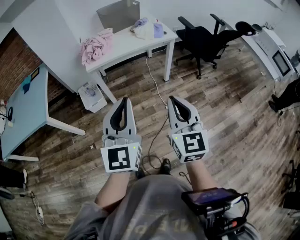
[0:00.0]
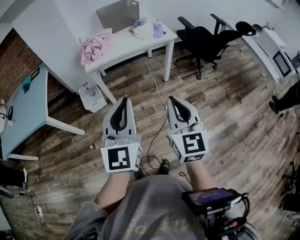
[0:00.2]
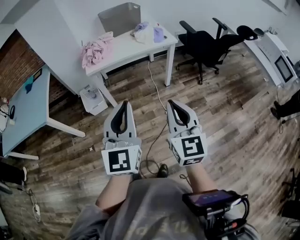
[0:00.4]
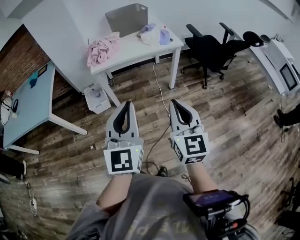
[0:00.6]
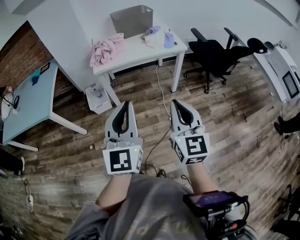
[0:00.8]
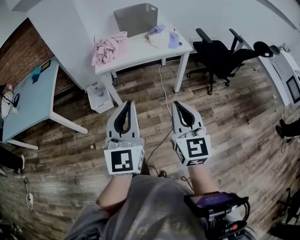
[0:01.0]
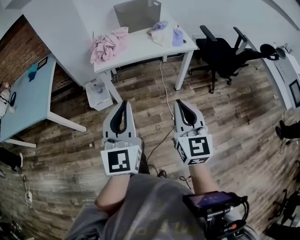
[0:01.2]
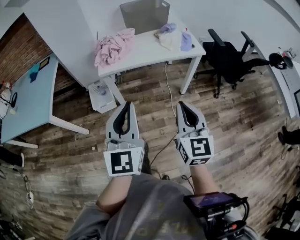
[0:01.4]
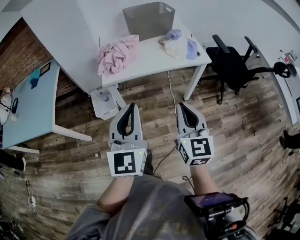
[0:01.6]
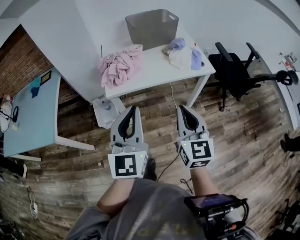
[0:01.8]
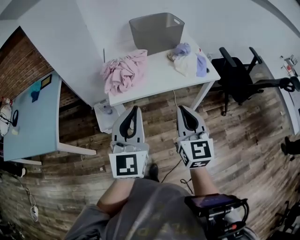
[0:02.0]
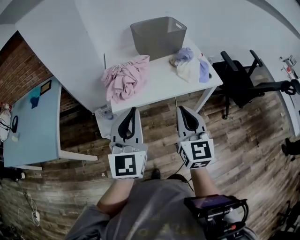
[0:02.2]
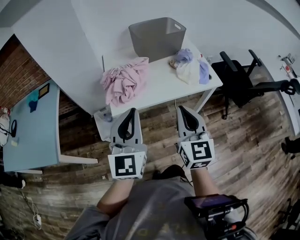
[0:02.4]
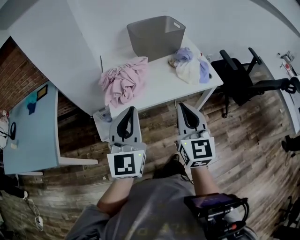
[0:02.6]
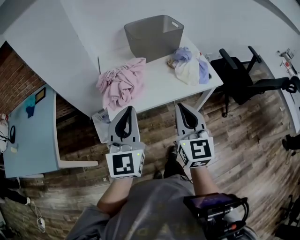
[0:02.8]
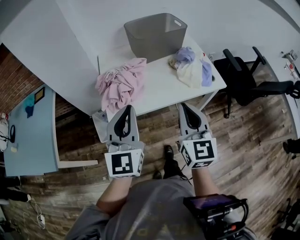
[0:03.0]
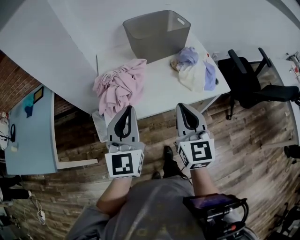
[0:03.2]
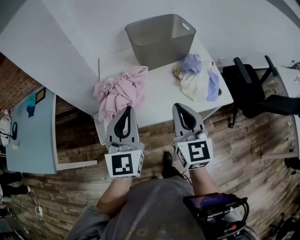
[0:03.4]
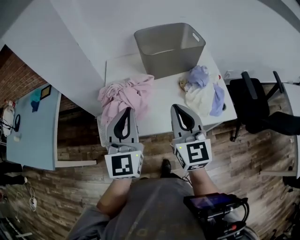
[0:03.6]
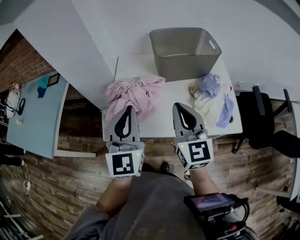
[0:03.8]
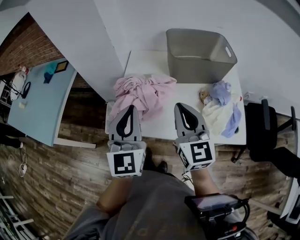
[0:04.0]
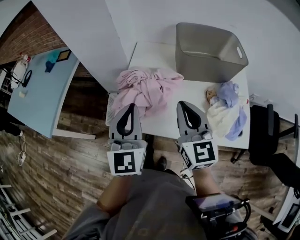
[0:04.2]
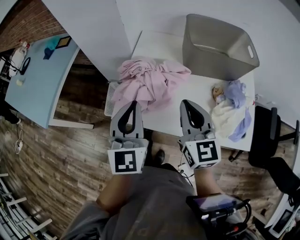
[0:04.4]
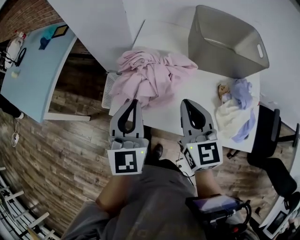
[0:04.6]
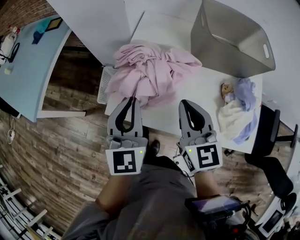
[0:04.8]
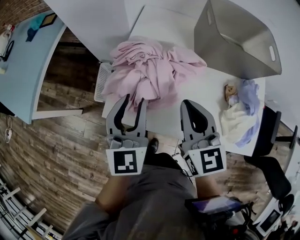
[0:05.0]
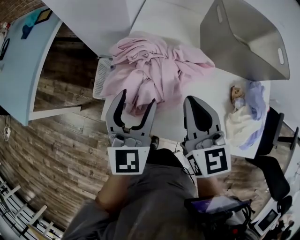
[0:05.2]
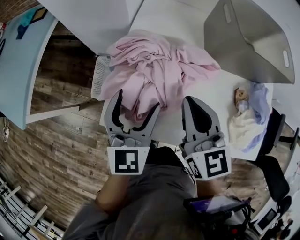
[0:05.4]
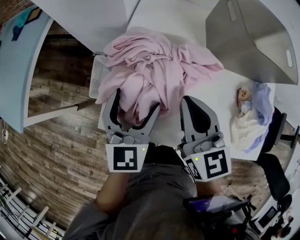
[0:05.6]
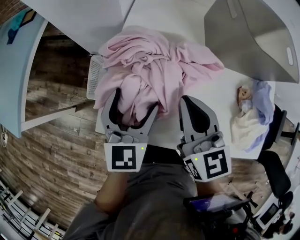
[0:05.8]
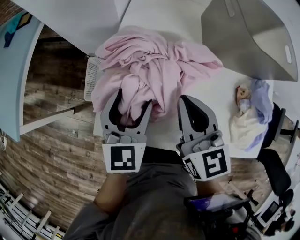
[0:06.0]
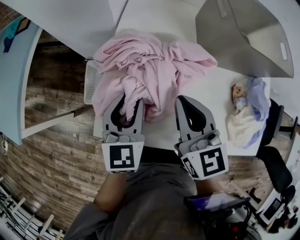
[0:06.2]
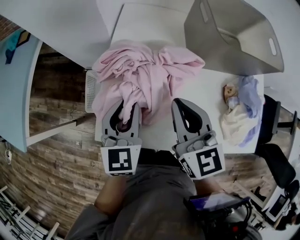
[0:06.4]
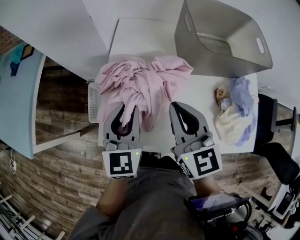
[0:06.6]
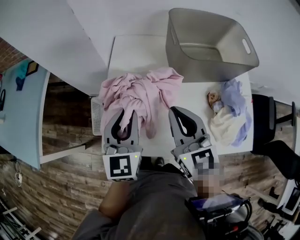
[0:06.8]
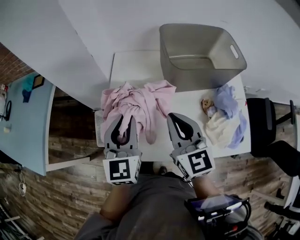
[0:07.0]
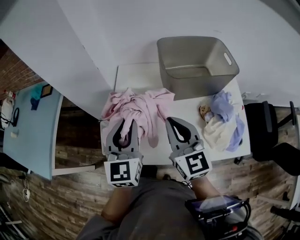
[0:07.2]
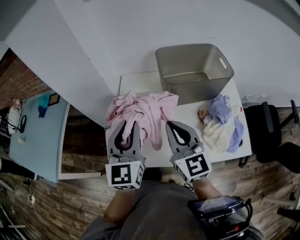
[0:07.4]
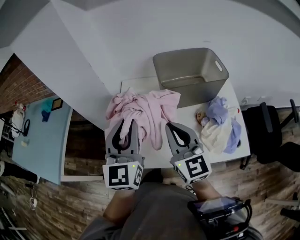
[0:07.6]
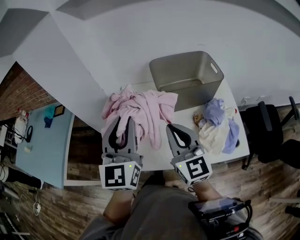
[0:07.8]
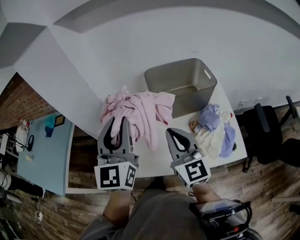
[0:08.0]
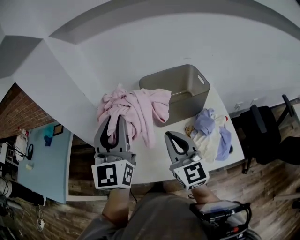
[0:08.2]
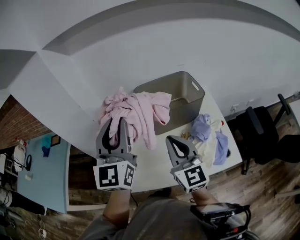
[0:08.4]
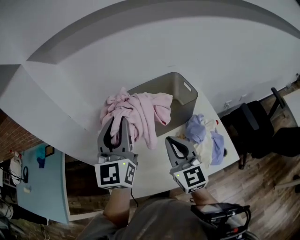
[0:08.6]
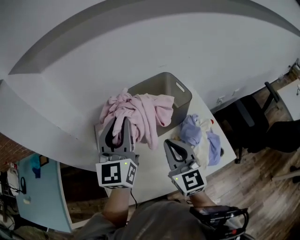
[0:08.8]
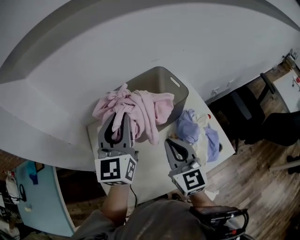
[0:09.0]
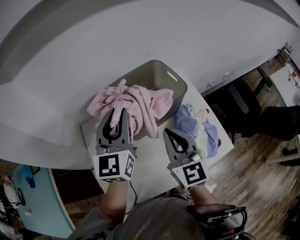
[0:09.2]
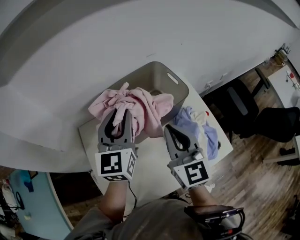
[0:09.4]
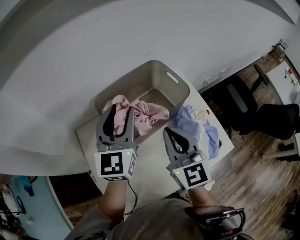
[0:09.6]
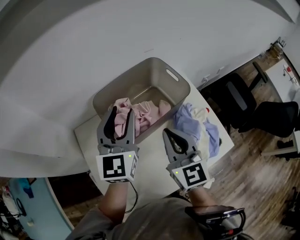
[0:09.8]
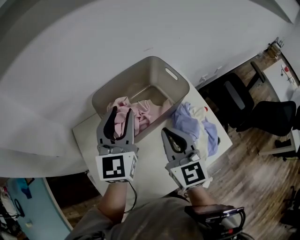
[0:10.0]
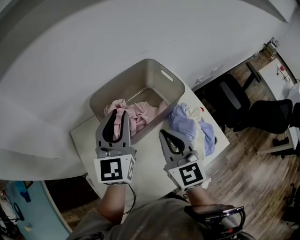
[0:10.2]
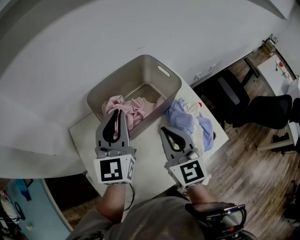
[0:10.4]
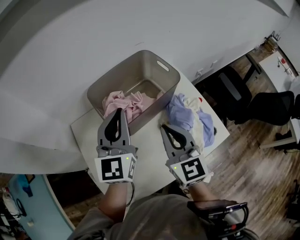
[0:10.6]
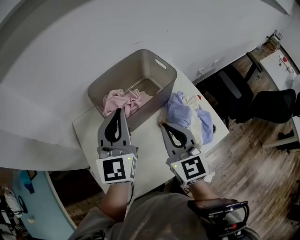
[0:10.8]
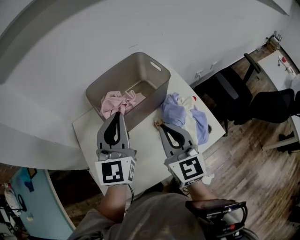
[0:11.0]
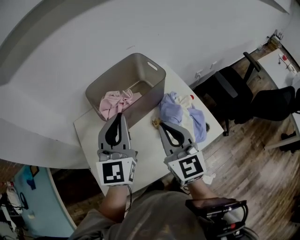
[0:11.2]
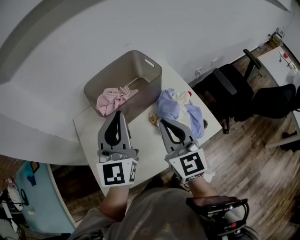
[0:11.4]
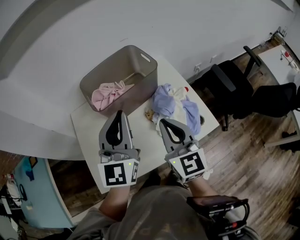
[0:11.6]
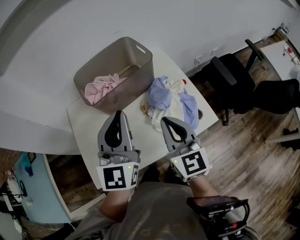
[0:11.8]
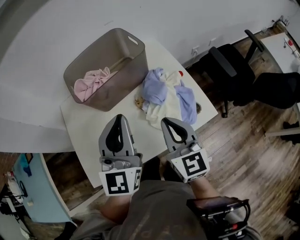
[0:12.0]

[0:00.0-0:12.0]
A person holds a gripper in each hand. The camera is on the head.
0.0 to 1.6 s: Both grippers move forward, approximately 20 cm.
1.6 to 3.0 s: The grippers both shift forward by roughly 25 cm.
3.0 to 4.4 s: The left gripper changes place by some 15 cm, and swivels about 30 degrees; the right gripper changes place by roughly 25 cm, and changes its angle by roughly 30 degrees.
4.4 to 6.0 s: The right gripper goes approximately 15 cm downward, forward and to the left. The left gripper heads downward and forward, covering approximately 20 cm, and opens.
6.0 to 7.6 s: The right gripper shifts some 20 cm upward. The left gripper heads upward, covering approximately 30 cm, swivels approximately 30 degrees, and closes.
7.6 to 9.0 s: The left gripper moves forward and to the right, roughly 25 cm, and turns by roughly 20 degrees. Meanwhile the right gripper moves to the right and forward, about 15 cm, and turns by some 20 degrees.
9.0 to 10.4 s: The left gripper shifts some 5 cm downward.
10.4 to 12.0 s: The left gripper heads backward and to the right, covering approximately 20 cm. Meanwhile the right gripper travels to the right, backward and downward by about 20 cm.

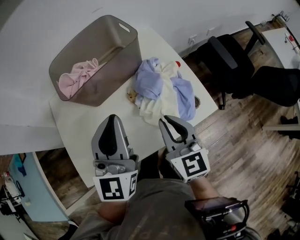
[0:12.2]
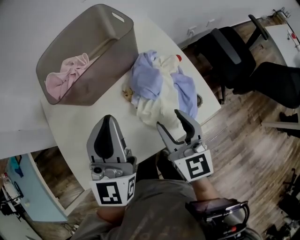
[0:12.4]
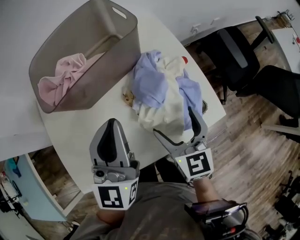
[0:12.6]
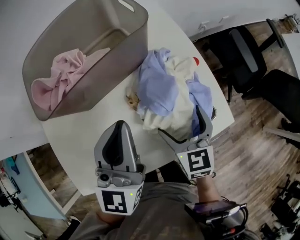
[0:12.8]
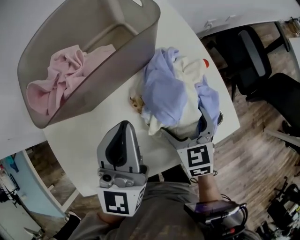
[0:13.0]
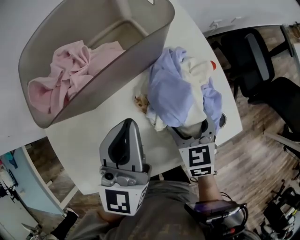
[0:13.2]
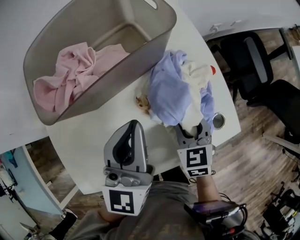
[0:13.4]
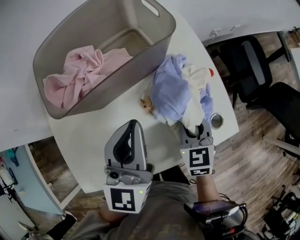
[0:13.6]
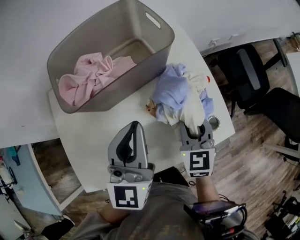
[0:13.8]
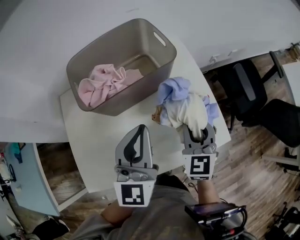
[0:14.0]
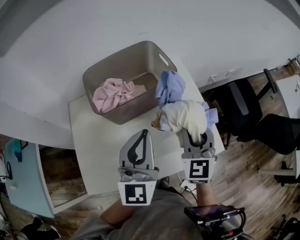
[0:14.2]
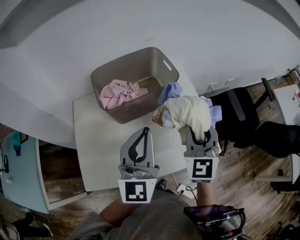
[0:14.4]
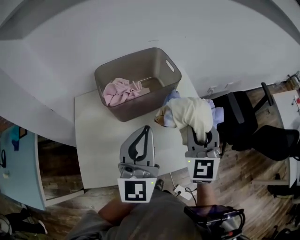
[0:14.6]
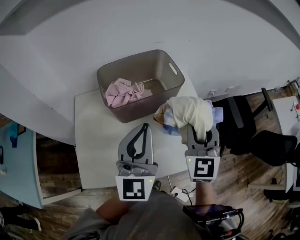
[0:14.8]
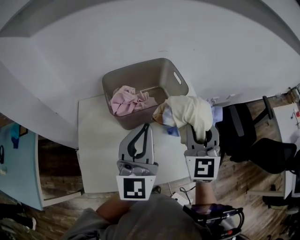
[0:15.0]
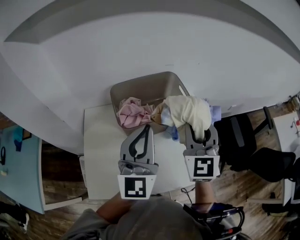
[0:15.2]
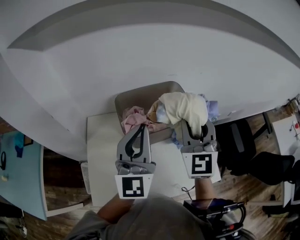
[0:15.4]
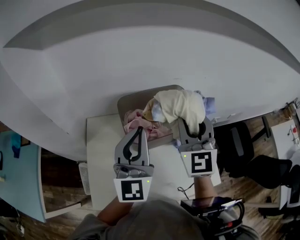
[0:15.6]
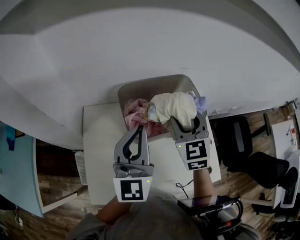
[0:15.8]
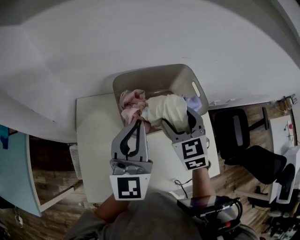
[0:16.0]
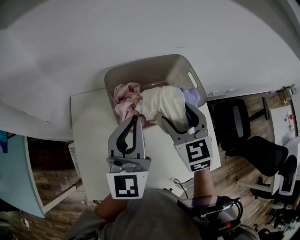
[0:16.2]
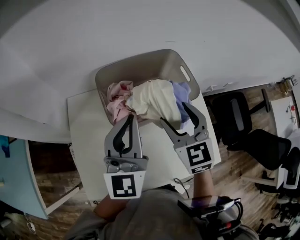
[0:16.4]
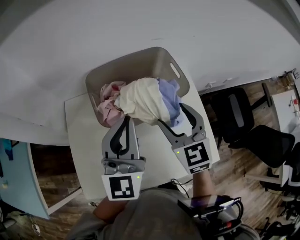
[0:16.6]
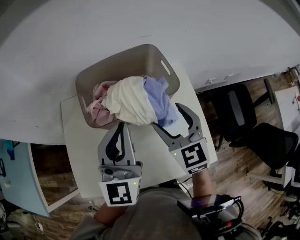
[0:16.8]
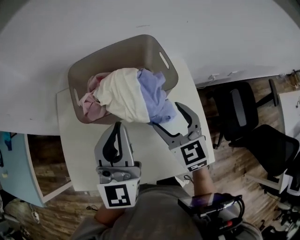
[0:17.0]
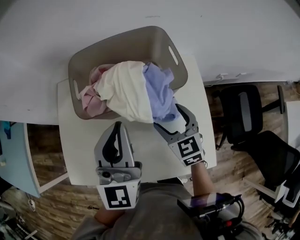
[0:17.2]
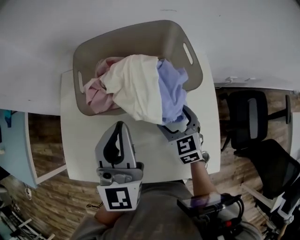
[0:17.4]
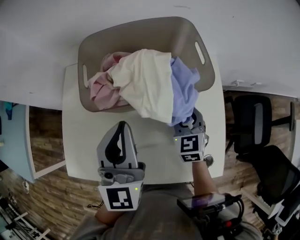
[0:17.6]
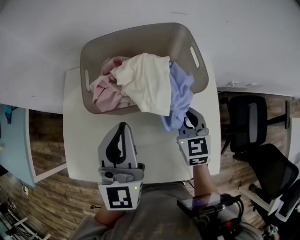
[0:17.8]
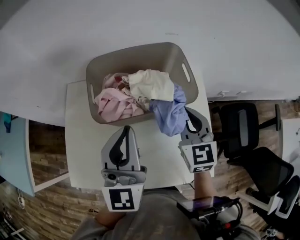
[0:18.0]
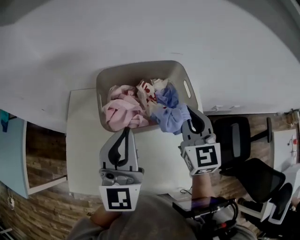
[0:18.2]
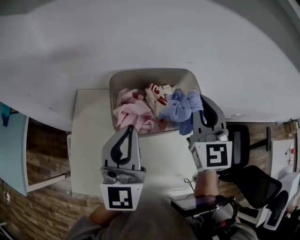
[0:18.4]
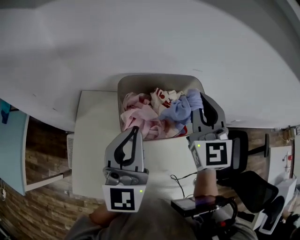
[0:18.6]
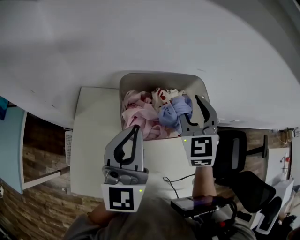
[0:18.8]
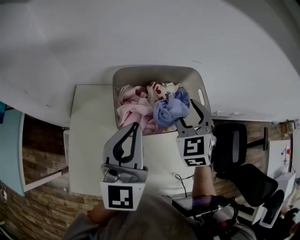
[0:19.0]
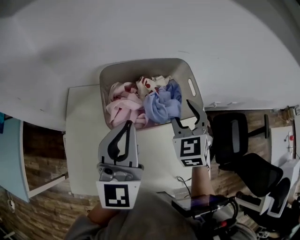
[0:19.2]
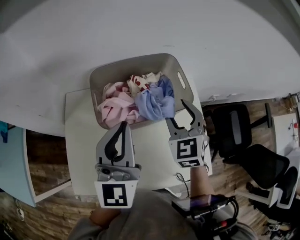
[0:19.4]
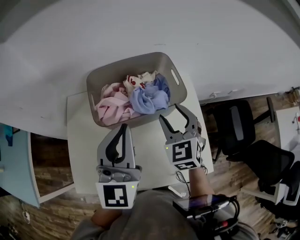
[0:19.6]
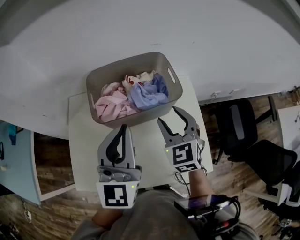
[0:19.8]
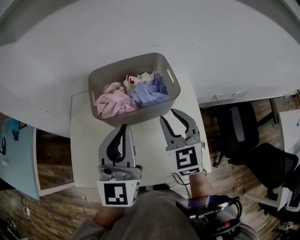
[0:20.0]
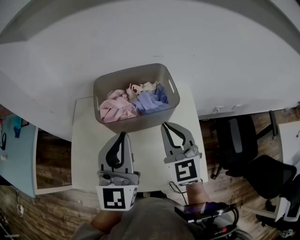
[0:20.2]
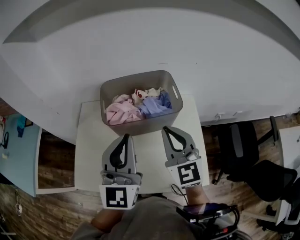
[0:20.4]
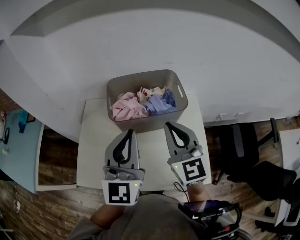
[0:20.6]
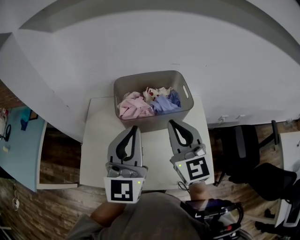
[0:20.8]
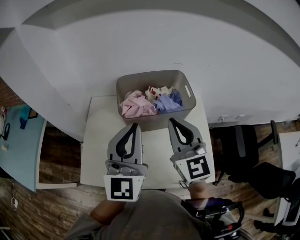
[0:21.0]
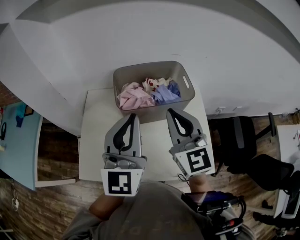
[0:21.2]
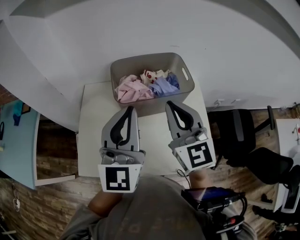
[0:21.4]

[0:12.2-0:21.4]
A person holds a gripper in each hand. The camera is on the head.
12.2 to 13.8 s: Both grippers move forward and downward, roughly 10 cm. The right gripper rotates roughly 20 degrees, and opens and closes again.
13.8 to 15.2 s: The right gripper moves upward, roughly 30 cm, and changes its angle by some 30 degrees, while the left gripper shifts roughly 15 cm upward.
15.2 to 16.8 s: The right gripper goes some 15 cm downward, changes its angle by some 30 degrees, and opens its fingers. The left gripper shifts approximately 5 cm downward, and moves some 10 cm to the left and comes back.
16.8 to 18.4 s: The left gripper shifts some 5 cm to the left, and travels downward and back again, roughly 5 cm each way. The right gripper is displaced upward and forward by about 15 cm, and closes up.
18.4 to 19.8 s: The left gripper is displaced to the right and backward by approximately 10 cm. The right gripper shifts some 15 cm downward and backward, and opens its fingers.
19.8 to 21.4 s: The right gripper heads upward, to the left and backward, covering roughly 15 cm, turns by some 30 degrees, and closes; the left gripper heads to the left, covering approximately 5 cm.

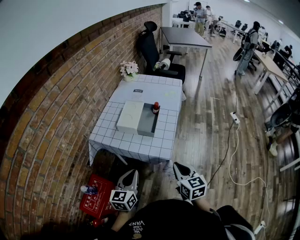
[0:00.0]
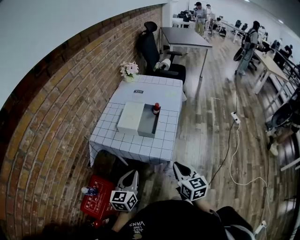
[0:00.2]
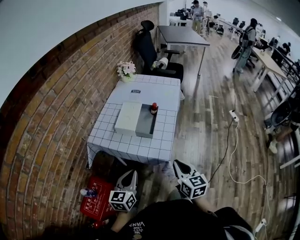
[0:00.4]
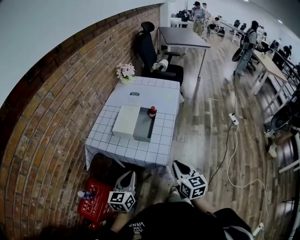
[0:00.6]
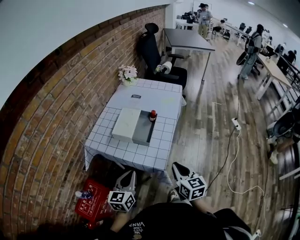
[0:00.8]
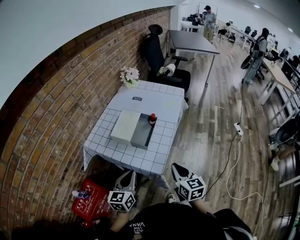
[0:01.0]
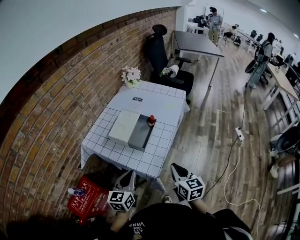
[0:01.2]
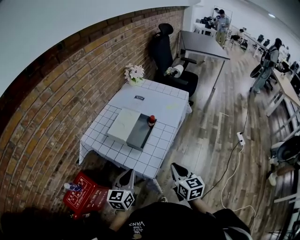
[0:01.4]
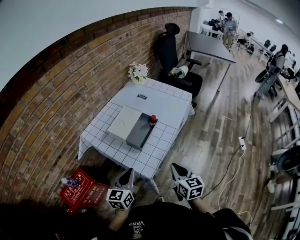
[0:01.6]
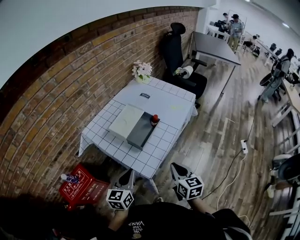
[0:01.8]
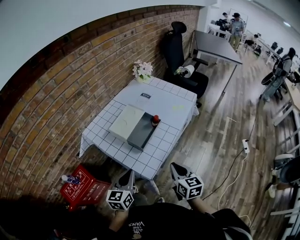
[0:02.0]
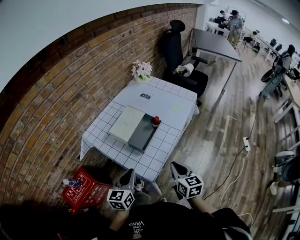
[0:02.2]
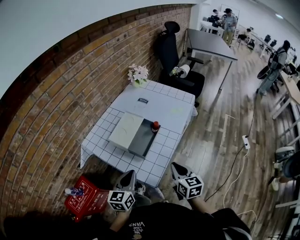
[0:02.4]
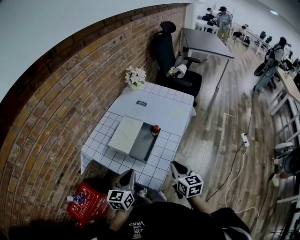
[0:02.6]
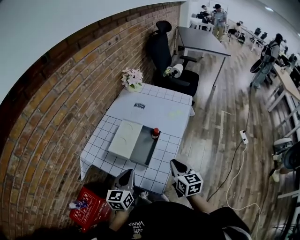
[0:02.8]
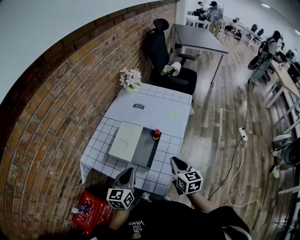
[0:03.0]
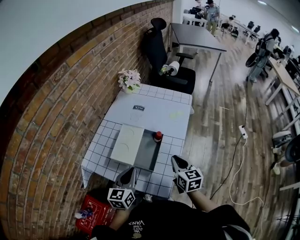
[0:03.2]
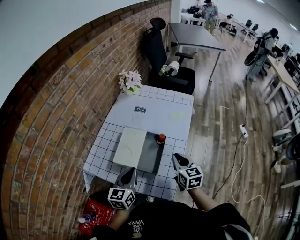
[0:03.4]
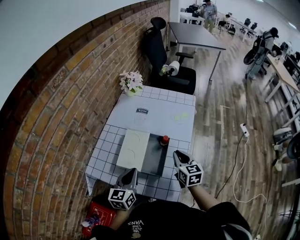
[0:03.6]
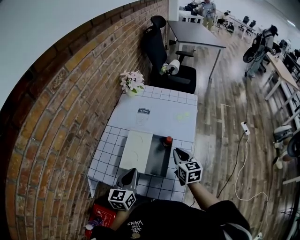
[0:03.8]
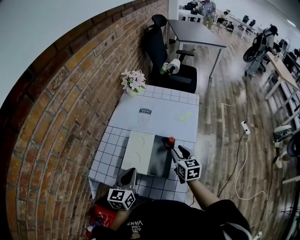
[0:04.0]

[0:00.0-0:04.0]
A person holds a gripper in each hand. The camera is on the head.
0.0 to 1.4 s: The right gripper heads forward and to the right, covering some 15 cm. The left gripper is displaced to the right and forward by some 15 cm.
1.4 to 2.6 s: The grippers both shift forward by some 10 cm.
2.6 to 4.0 s: Both grippers travel together forward and to the left, some 20 cm. The right gripper opens.
